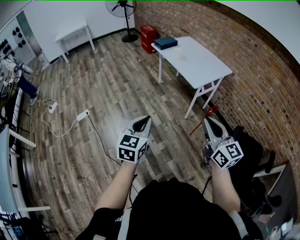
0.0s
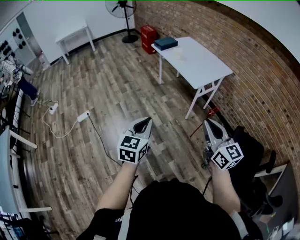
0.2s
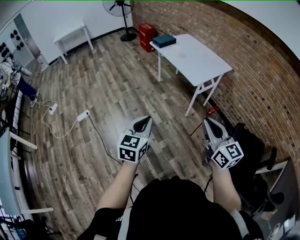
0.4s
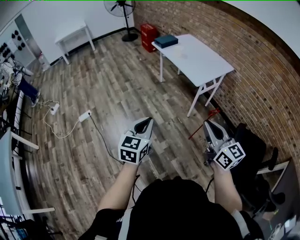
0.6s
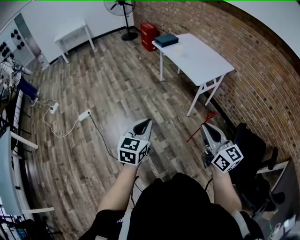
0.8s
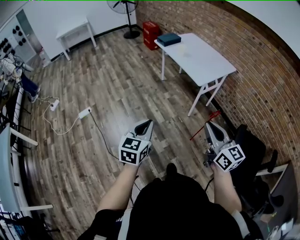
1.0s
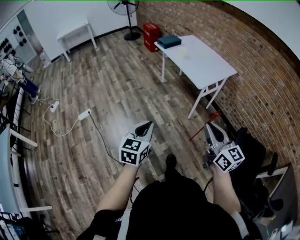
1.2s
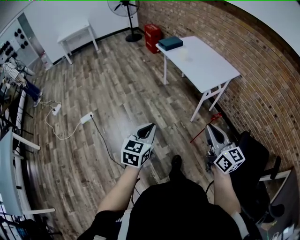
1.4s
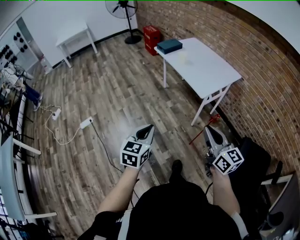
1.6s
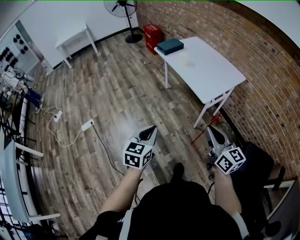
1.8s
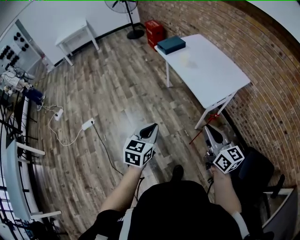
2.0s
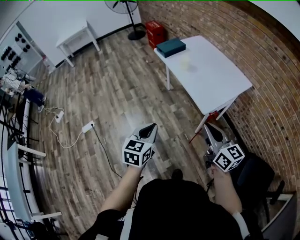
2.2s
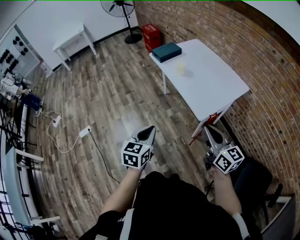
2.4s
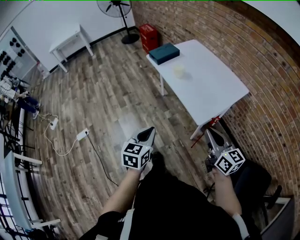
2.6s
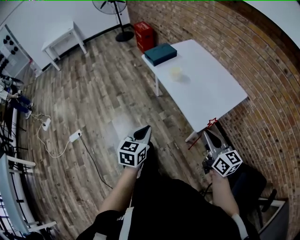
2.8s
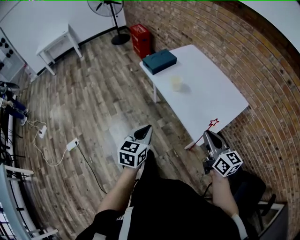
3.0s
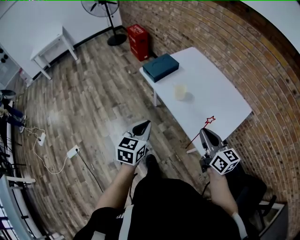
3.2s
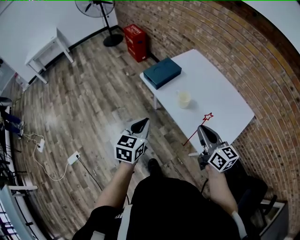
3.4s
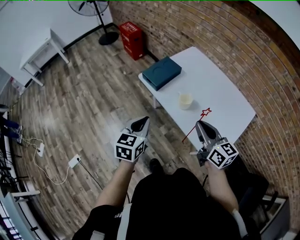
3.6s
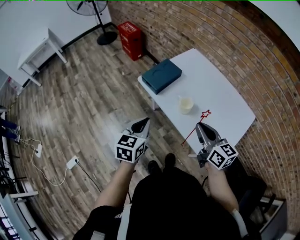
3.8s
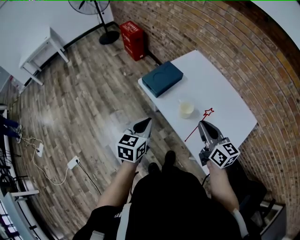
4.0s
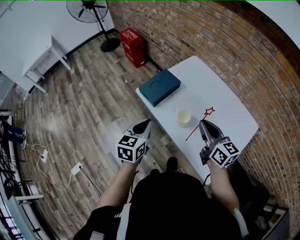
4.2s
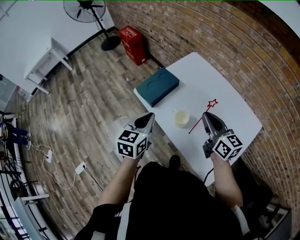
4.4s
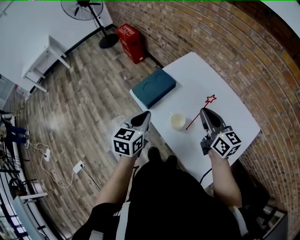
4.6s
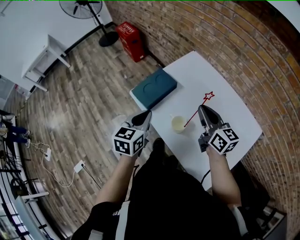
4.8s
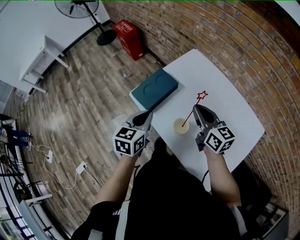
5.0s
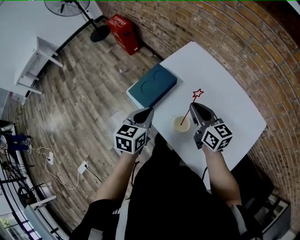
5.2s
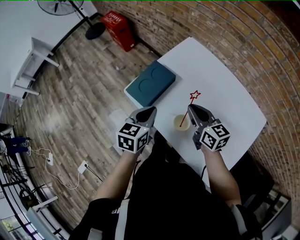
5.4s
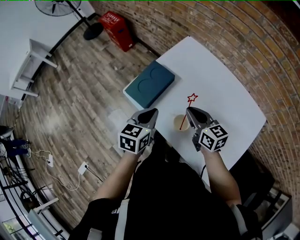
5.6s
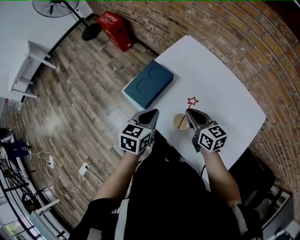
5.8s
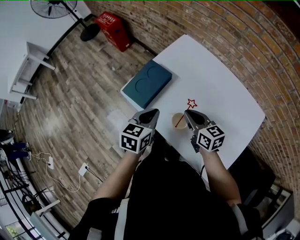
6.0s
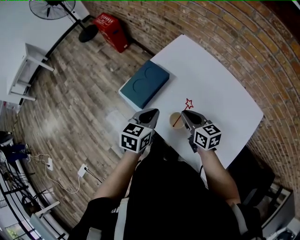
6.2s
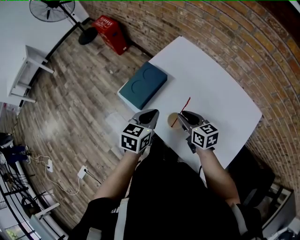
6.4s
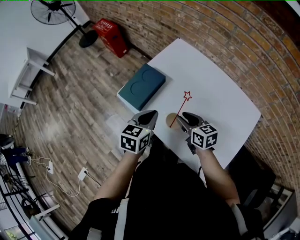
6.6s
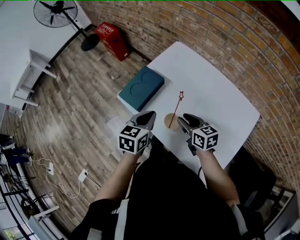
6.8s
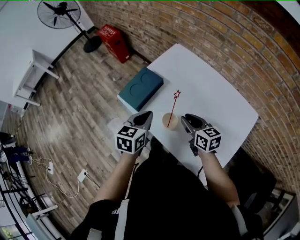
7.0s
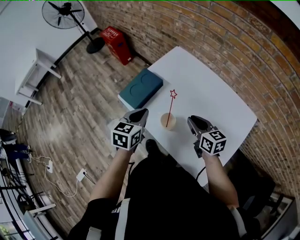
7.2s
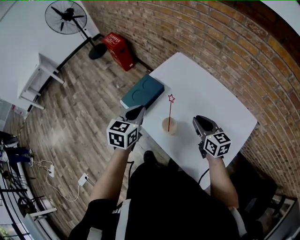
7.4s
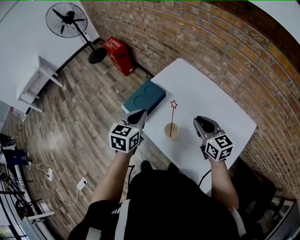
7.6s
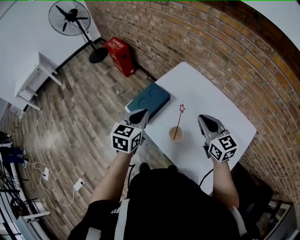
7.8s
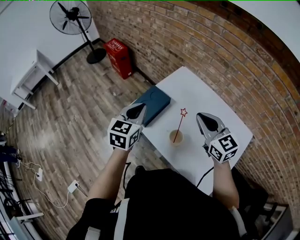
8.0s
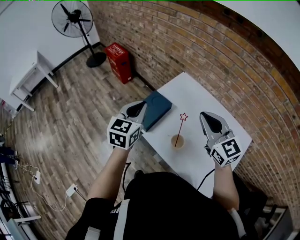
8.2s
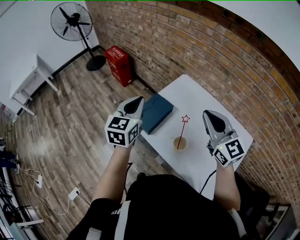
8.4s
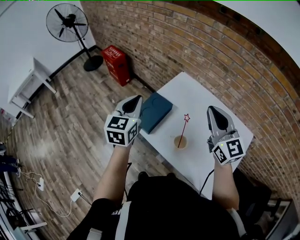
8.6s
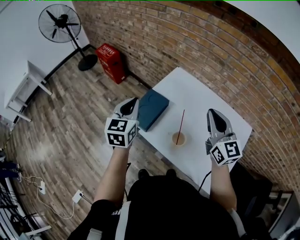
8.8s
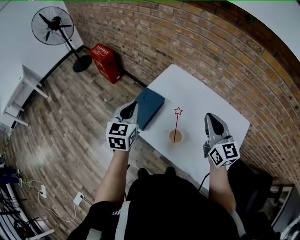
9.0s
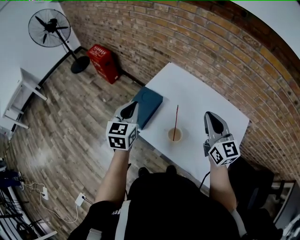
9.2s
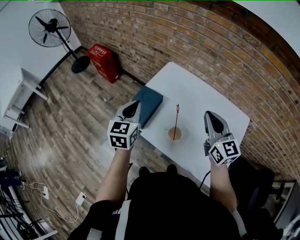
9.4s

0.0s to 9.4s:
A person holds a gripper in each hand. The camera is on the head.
0.0s to 1.6s: Both grippers move forward and downward, some 10 cm.
1.6s to 3.2s: The two grippers travel together, forward, about 50 cm.
3.2s to 4.8s: Both grippers move forward, some 35 cm.
4.8s to 6.2s: The left gripper is displaced downward by roughly 5 cm. The right gripper moves downward and to the left, about 15 cm.
6.2s to 7.8s: The right gripper shifts roughly 15 cm upward and to the right, turns by approximately 20 degrees, and opens and closes again. Meanwhile the left gripper travels upward by approximately 10 cm.
7.8s to 9.4s: The right gripper moves upward, roughly 5 cm, and swivels approximately 20 degrees. The left gripper is displaced forward by roughly 5 cm, and reaches approximately 10 cm upward, then returns.

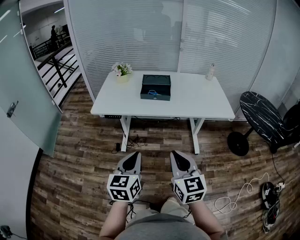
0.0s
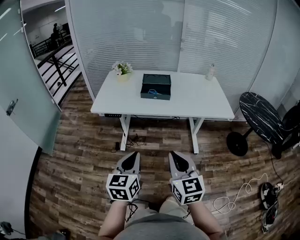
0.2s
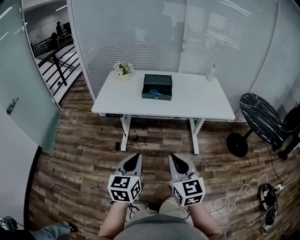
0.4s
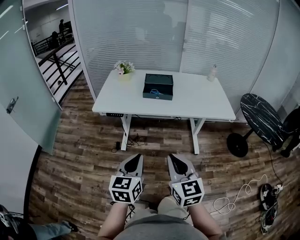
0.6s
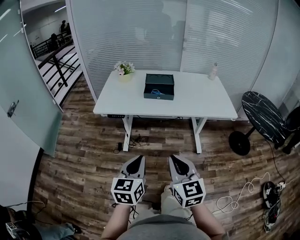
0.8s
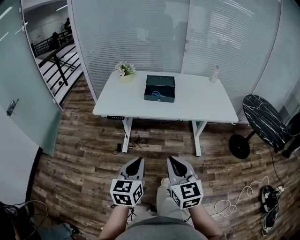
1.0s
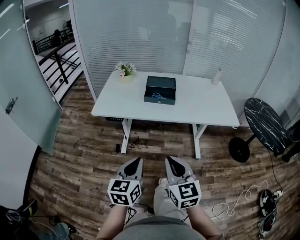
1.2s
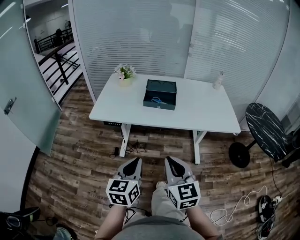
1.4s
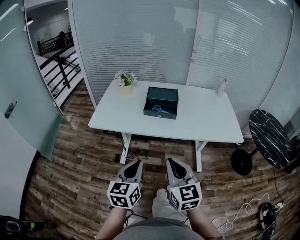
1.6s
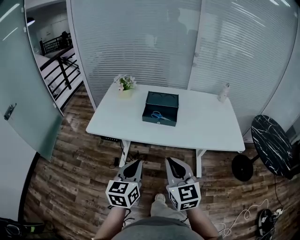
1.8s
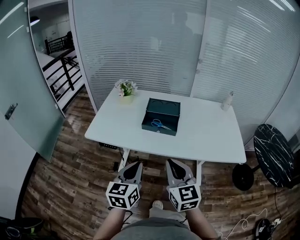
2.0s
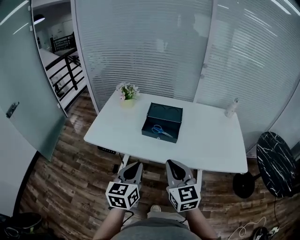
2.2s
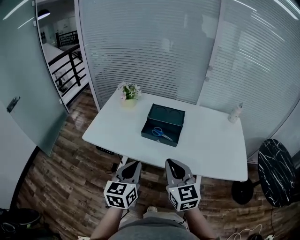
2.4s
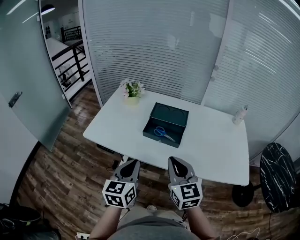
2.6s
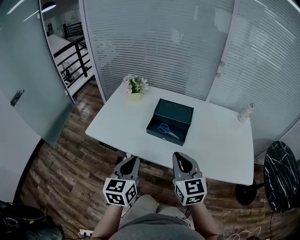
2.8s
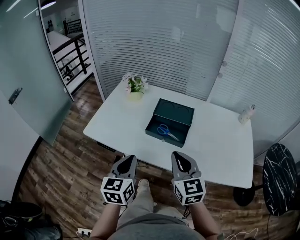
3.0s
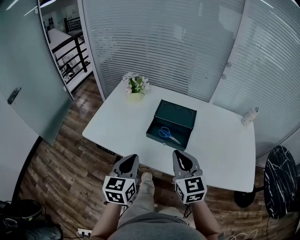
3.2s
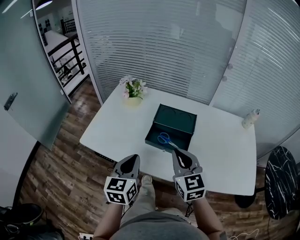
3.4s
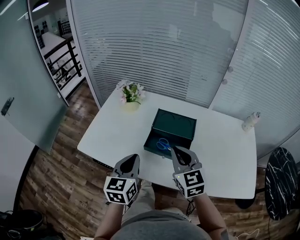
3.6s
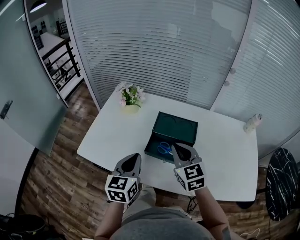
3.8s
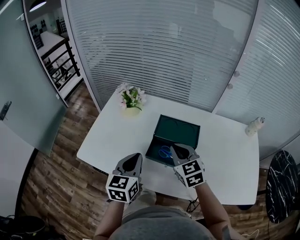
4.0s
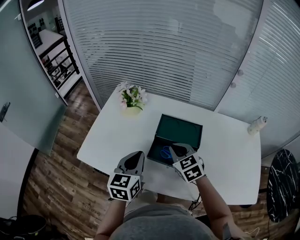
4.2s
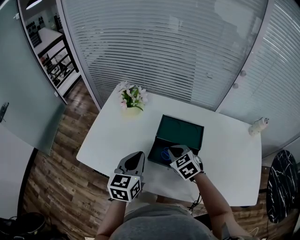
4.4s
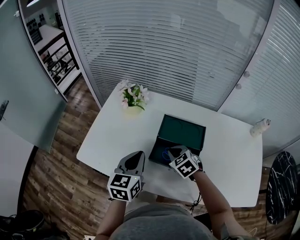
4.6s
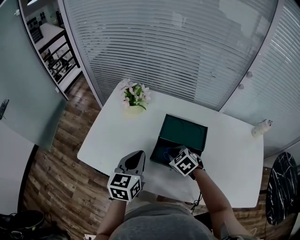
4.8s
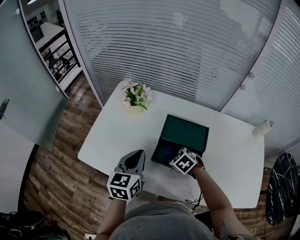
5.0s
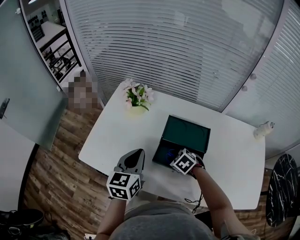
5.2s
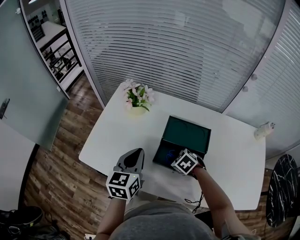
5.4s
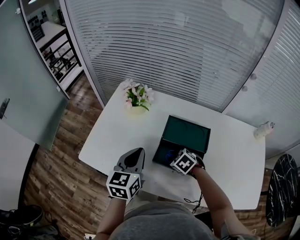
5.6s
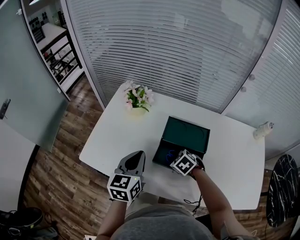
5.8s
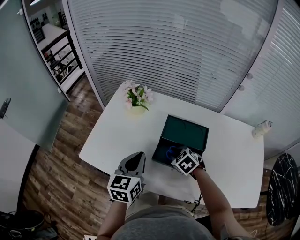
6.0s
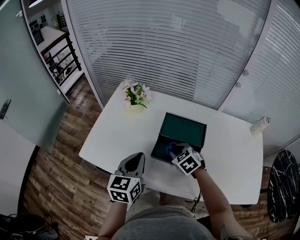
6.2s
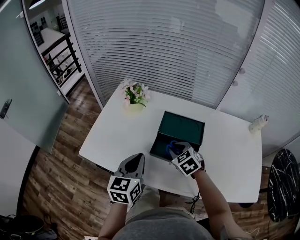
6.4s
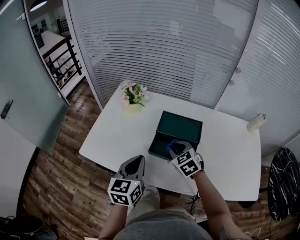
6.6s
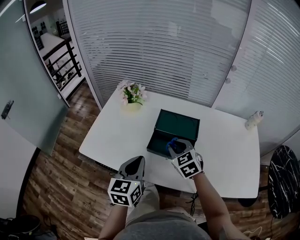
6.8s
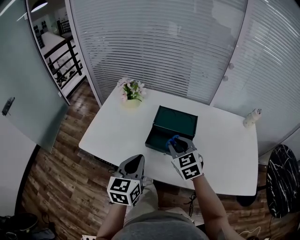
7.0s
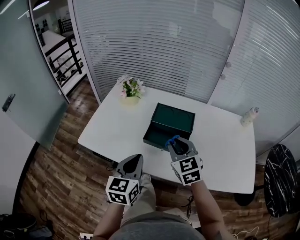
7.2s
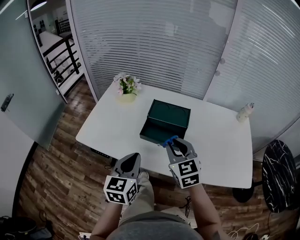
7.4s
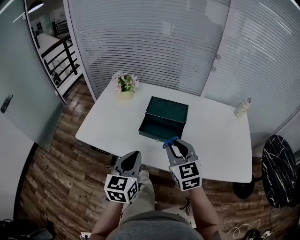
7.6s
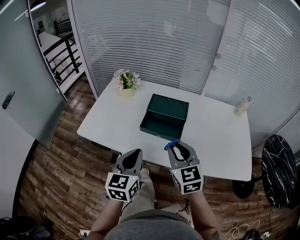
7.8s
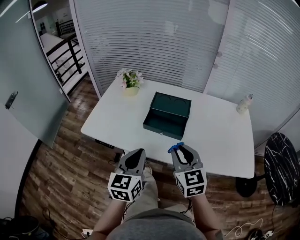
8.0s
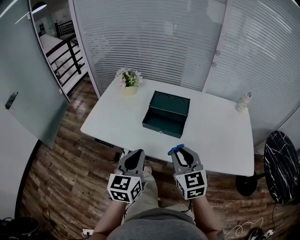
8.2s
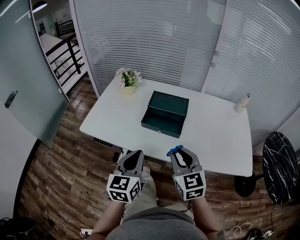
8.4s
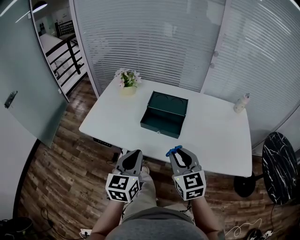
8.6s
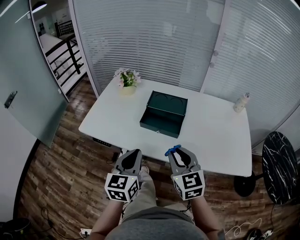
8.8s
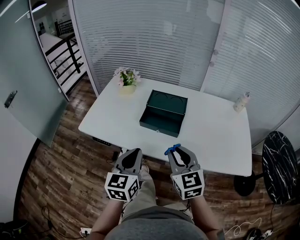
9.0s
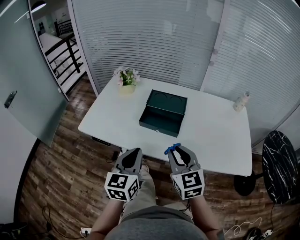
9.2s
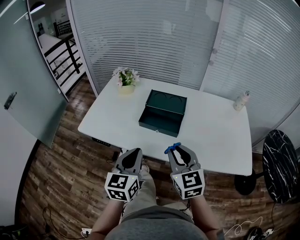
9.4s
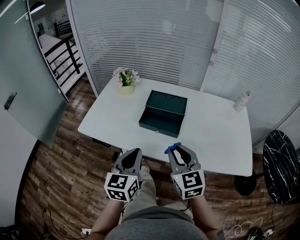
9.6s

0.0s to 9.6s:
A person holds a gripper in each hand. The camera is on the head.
0.0s to 1.6s: Both grippers move forward, some 15 cm.
1.6s to 3.2s: Both grippers travel together forward, roughly 30 cm.
3.2s to 4.8s: The left gripper goes roughly 20 cm forward. Meanwhile the right gripper goes about 30 cm forward and downward, and points its fingers about 40 degrees further downward.
4.8s to 6.4s: The right gripper moves approximately 5 cm. Meanwhile the left gripper is displaced backward by roughly 5 cm.
6.4s to 8.0s: The right gripper shifts some 30 cm backward and upward, and tilts its fingers about 30 degrees upward; the left gripper heads backward, covering some 20 cm.
8.0s to 9.6s: There are only small adjustments of the grippers.

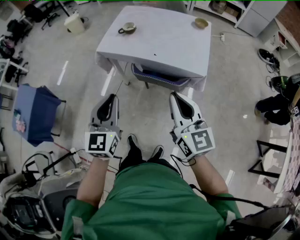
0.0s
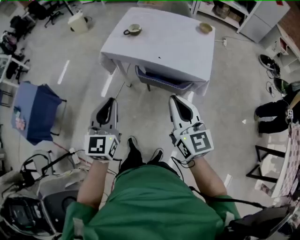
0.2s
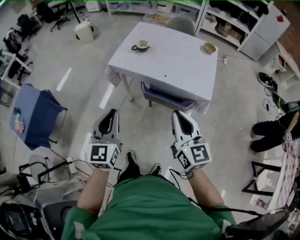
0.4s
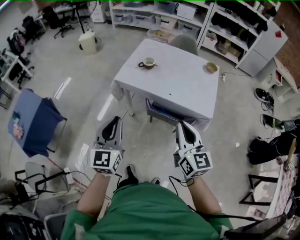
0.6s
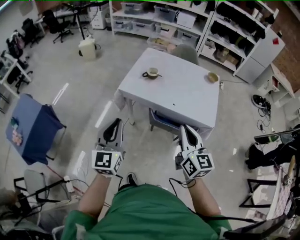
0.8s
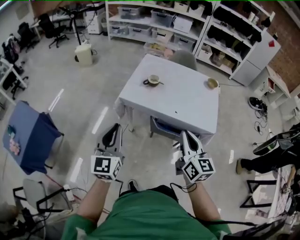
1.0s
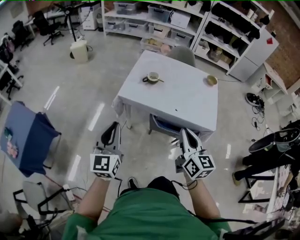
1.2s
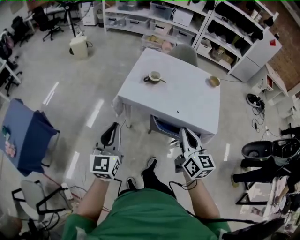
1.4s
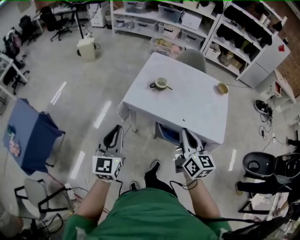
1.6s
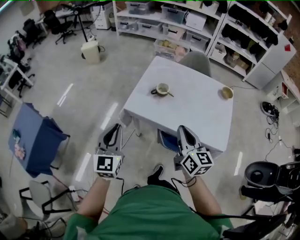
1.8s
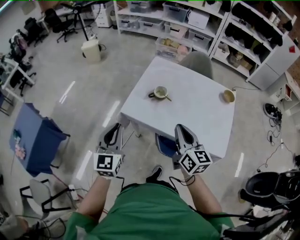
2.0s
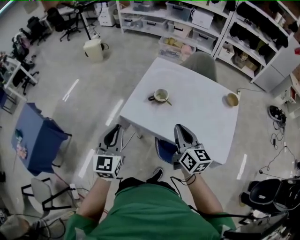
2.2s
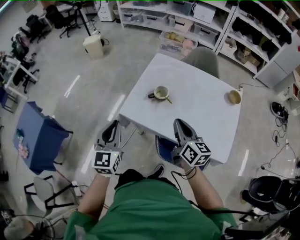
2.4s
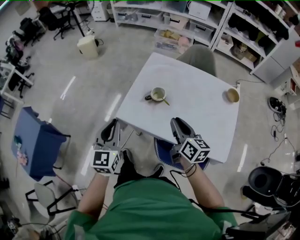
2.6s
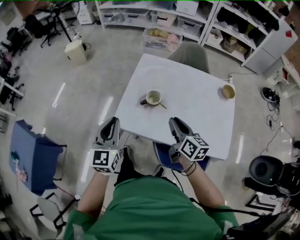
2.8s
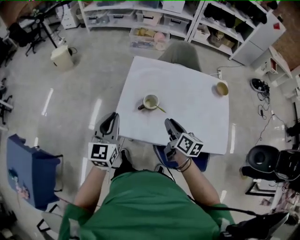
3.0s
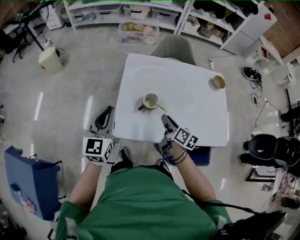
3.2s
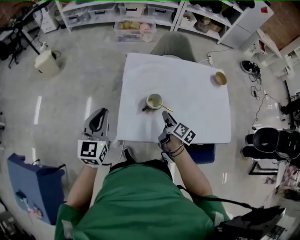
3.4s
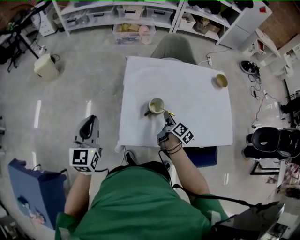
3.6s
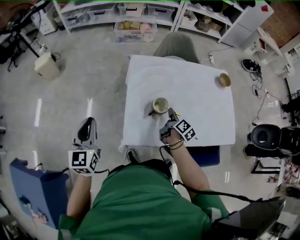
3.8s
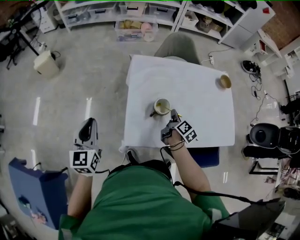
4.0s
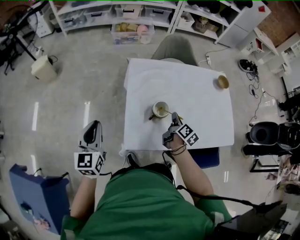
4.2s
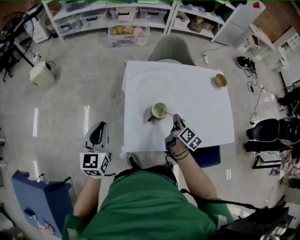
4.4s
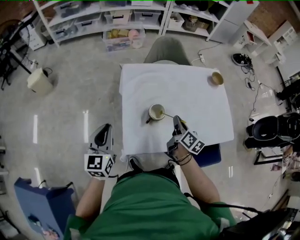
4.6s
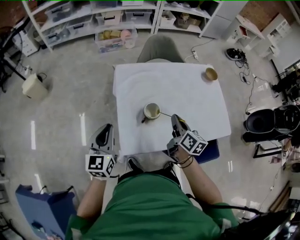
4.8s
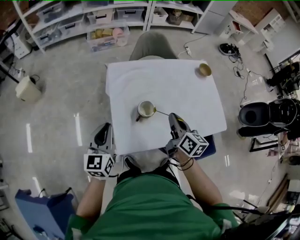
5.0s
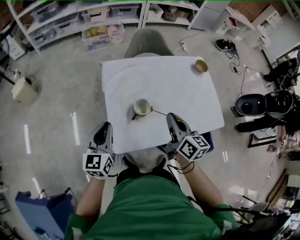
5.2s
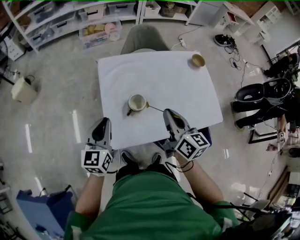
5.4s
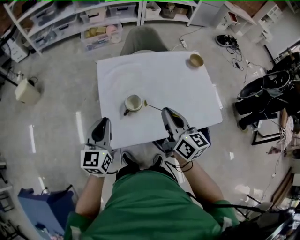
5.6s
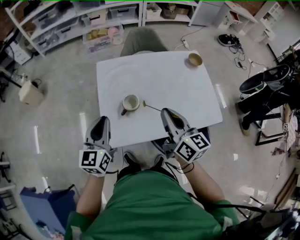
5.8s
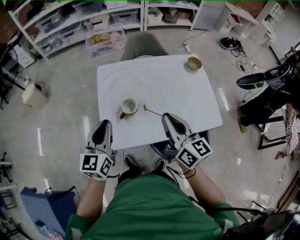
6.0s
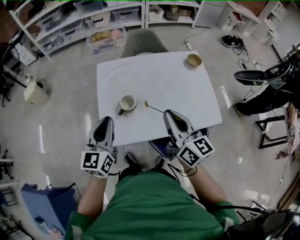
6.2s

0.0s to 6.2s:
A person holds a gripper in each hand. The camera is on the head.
0.0s to 1.6s: The left gripper moves to the left and forward, approximately 40 cm. Meanwhile the right gripper moves forward and to the left, about 35 cm.
1.6s to 3.2s: The pair of grippers is taken forward, approximately 50 cm. The right gripper shifts roughly 20 cm downward, changes its angle by some 40 degrees, and opens up.
3.2s to 4.6s: The right gripper goes some 5 cm forward, and closes; the left gripper moves to the left, downward and forward, approximately 10 cm.
4.6s to 6.2s: The left gripper is displaced to the right by some 25 cm. The right gripper is displaced upward, to the right and backward by approximately 25 cm, and swivels about 30 degrees.
